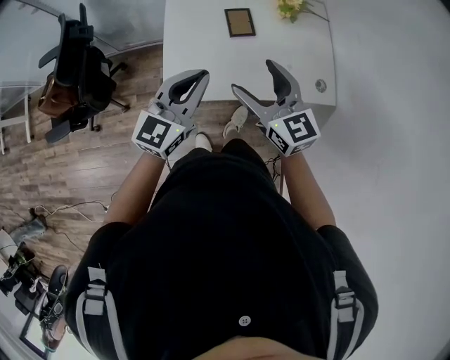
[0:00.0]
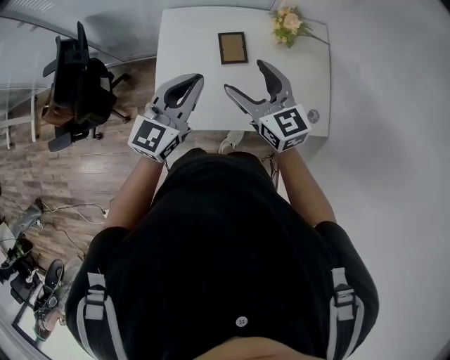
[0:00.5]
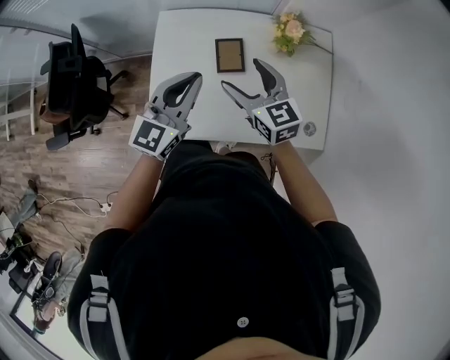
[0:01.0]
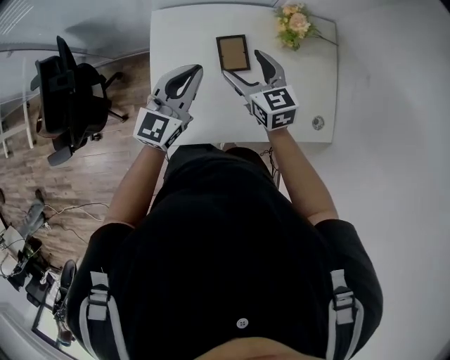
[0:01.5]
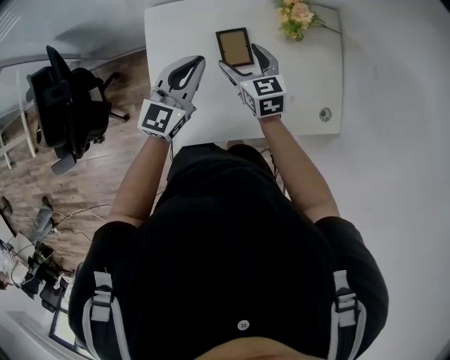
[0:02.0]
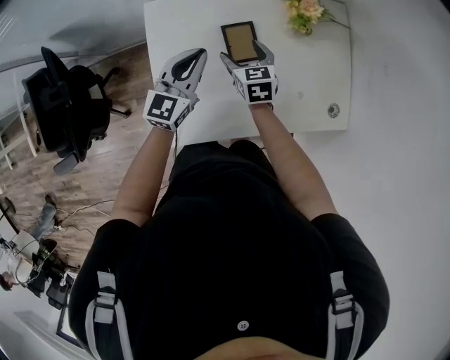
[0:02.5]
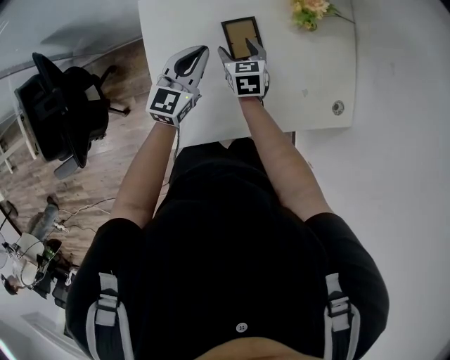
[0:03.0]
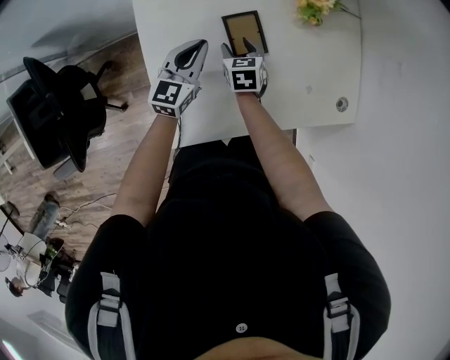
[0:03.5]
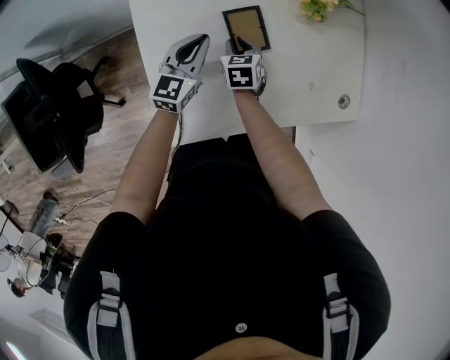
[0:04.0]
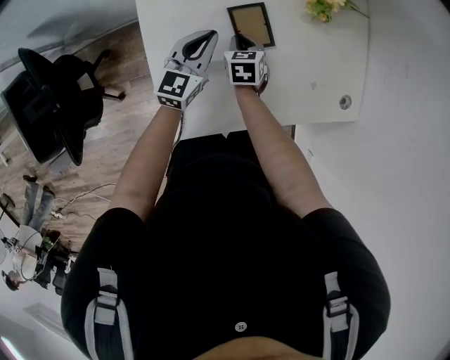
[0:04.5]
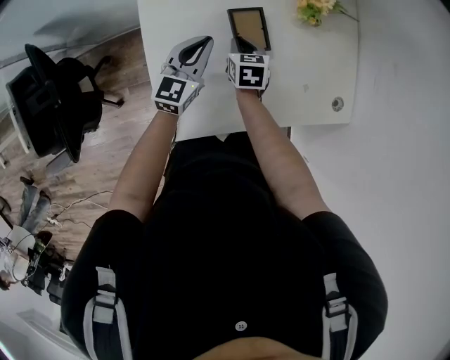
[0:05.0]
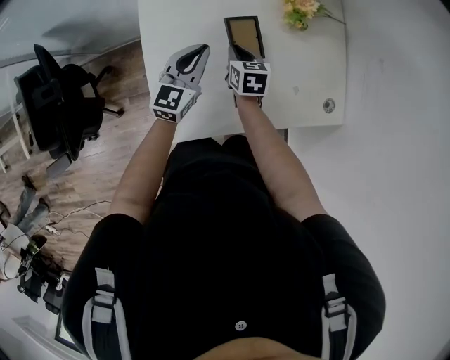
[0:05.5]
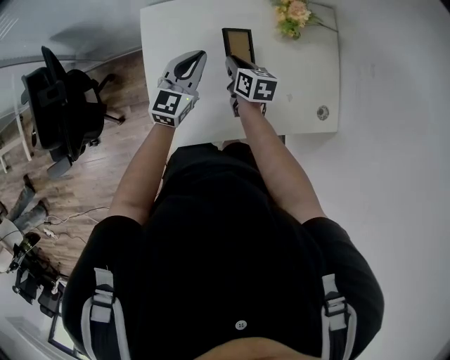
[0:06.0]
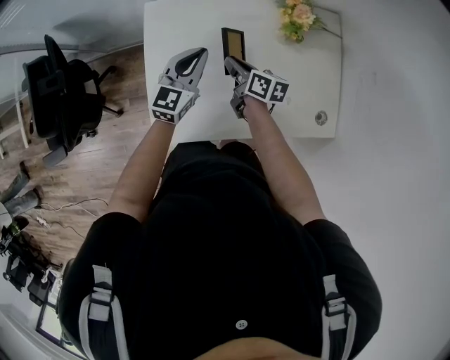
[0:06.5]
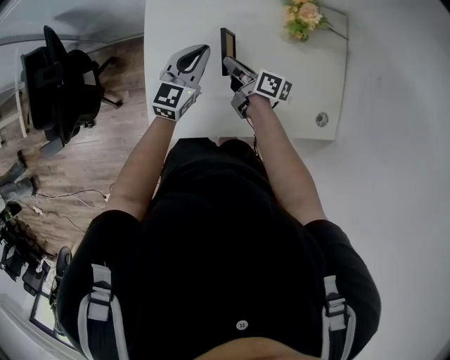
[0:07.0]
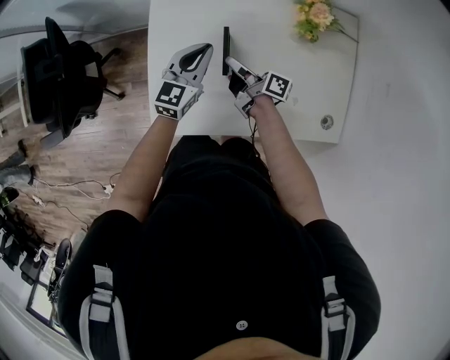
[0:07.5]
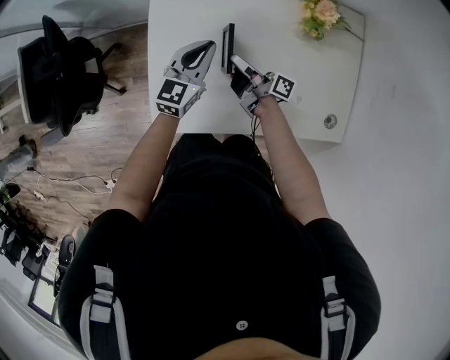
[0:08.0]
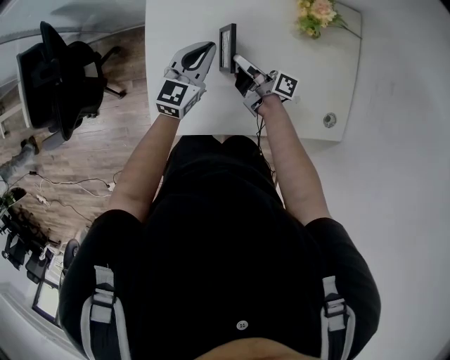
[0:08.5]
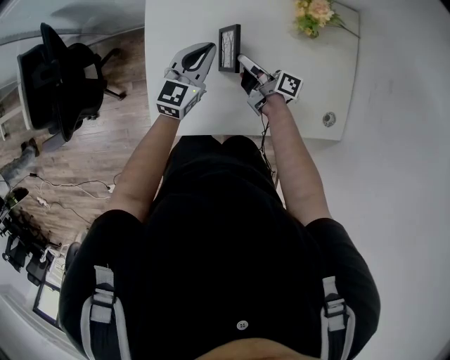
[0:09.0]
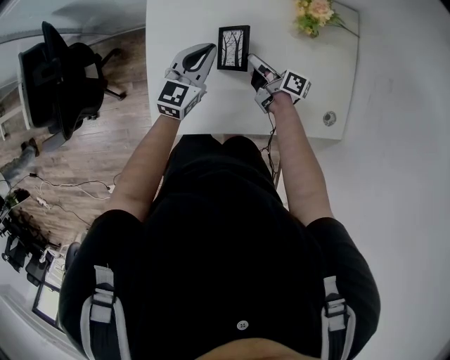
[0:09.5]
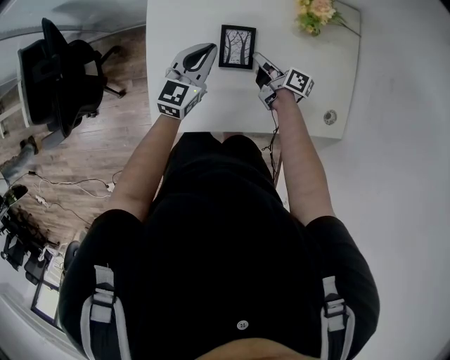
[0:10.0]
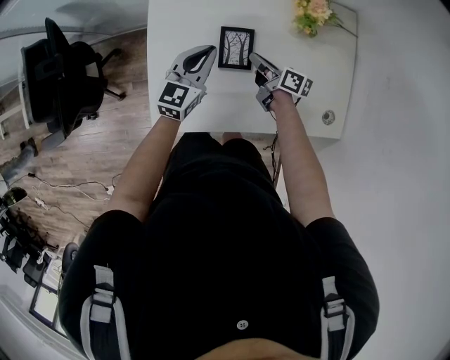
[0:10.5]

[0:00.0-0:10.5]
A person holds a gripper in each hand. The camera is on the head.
0:00.0 to 0:02.0: The left gripper travels forward by roughly 30 cm, while the right gripper heads forward and downward, covering about 35 cm, and changes its angle by approximately 20 degrees.
0:02.0 to 0:04.0: Both grippers travel together downward, about 20 cm. The right gripper turns by approximately 30 degrees, and closes up.
0:04.0 to 0:06.5: Both grippers move upward, about 10 cm. The right gripper changes its angle by some 50 degrees.
0:06.5 to 0:08.5: The right gripper changes its angle by roughly 40 degrees. The left gripper heads downward, covering approximately 5 cm.
0:08.5 to 0:10.5: The right gripper ends up about 5 cm from where it was, and changes its angle by about 30 degrees.

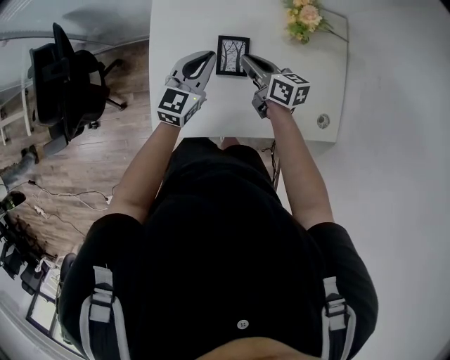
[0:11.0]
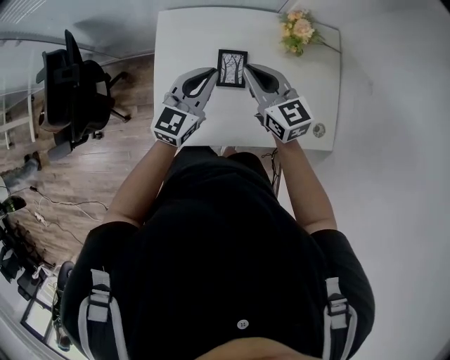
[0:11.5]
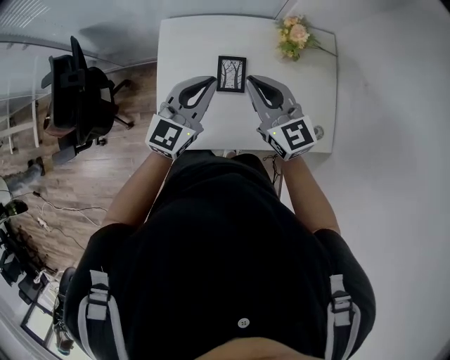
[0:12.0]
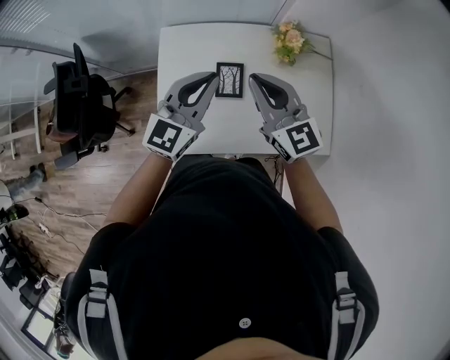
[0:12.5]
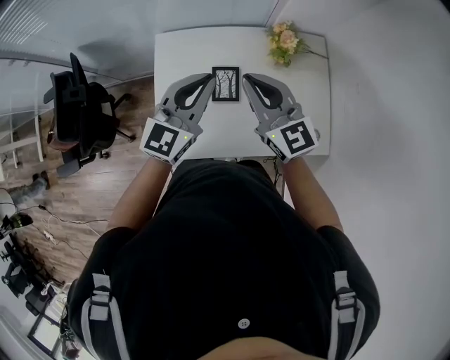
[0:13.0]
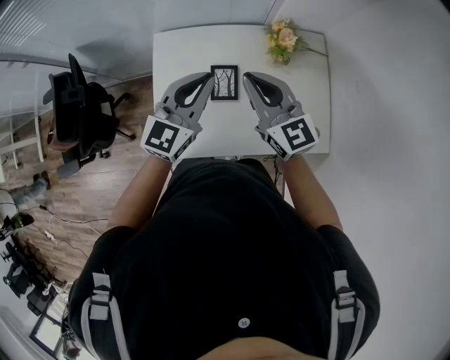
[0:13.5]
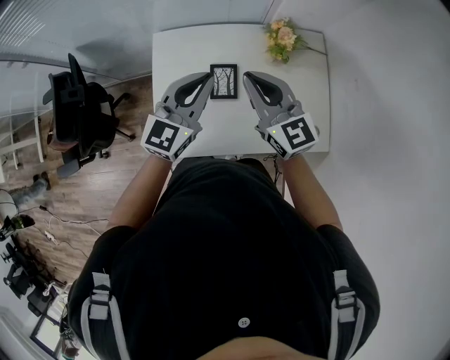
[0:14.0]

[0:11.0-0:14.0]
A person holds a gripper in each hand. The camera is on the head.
0:11.0 to 0:12.5: The grippers both shift upward by some 20 cm. The right gripper twists about 50 degrees counterclockwise, seen from behind.
0:12.5 to 0:14.0: The grippers stay close to where they were, moving slightly.

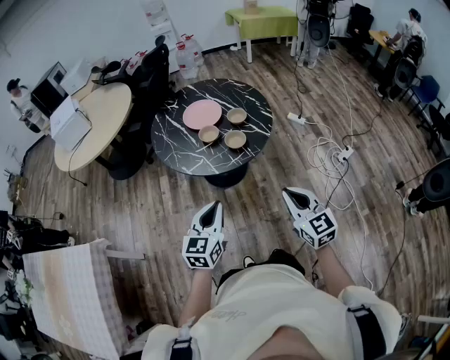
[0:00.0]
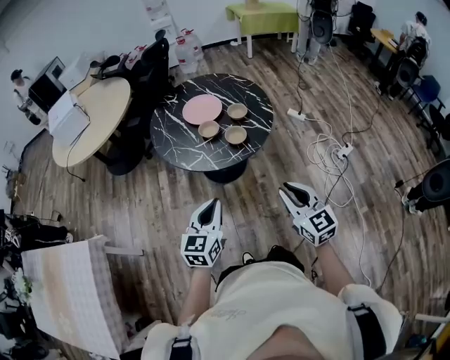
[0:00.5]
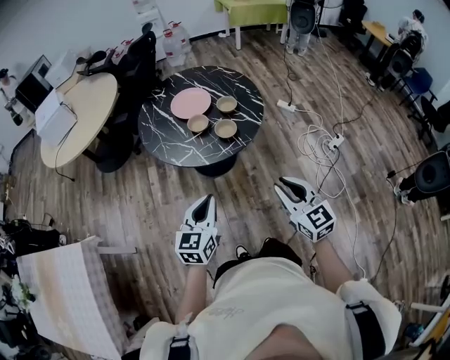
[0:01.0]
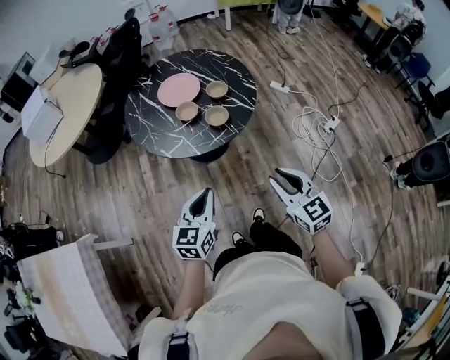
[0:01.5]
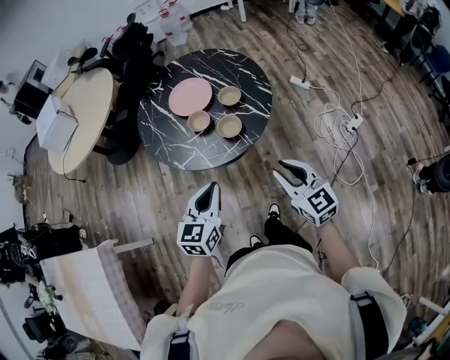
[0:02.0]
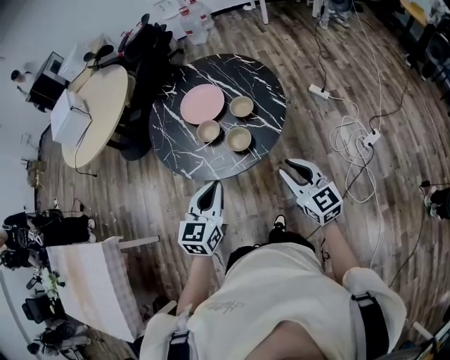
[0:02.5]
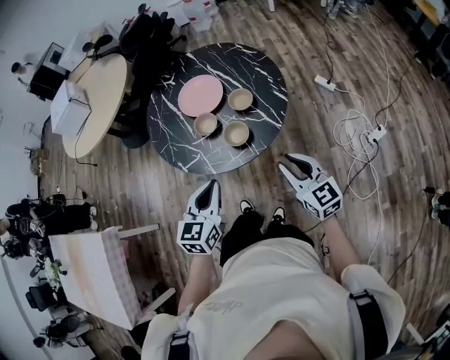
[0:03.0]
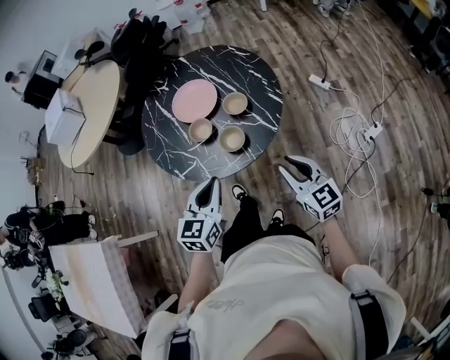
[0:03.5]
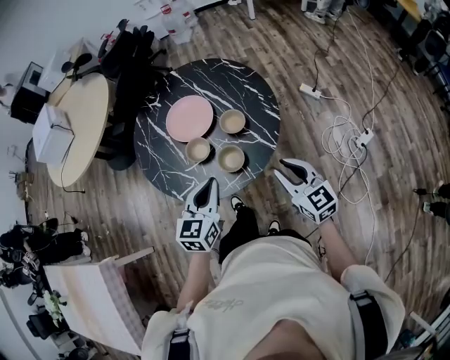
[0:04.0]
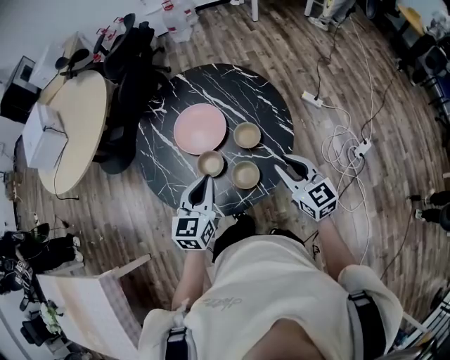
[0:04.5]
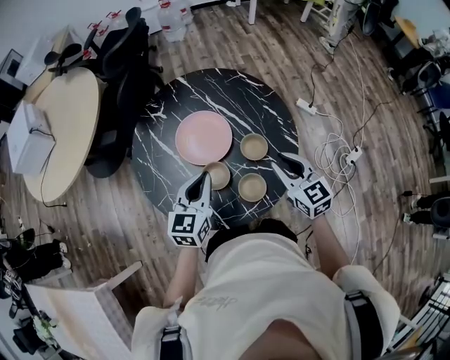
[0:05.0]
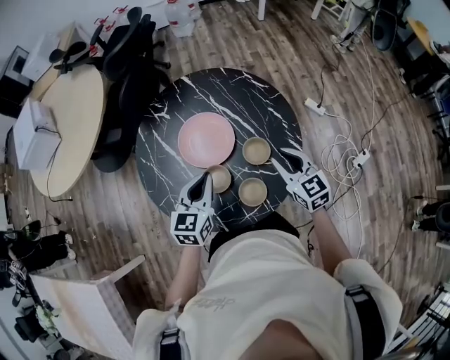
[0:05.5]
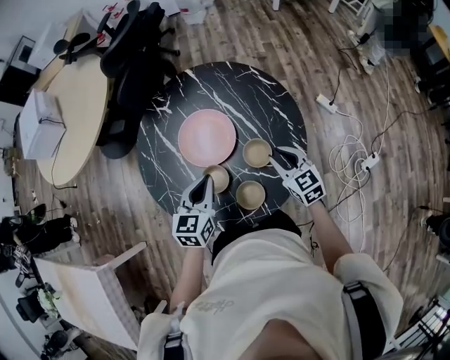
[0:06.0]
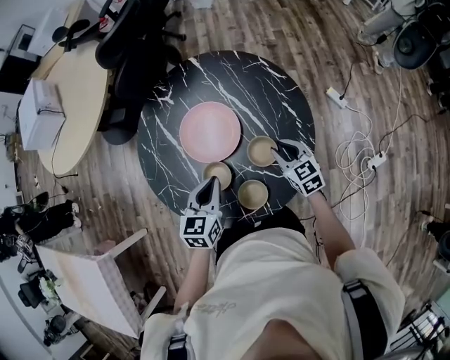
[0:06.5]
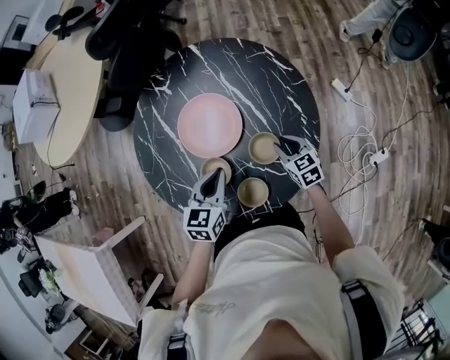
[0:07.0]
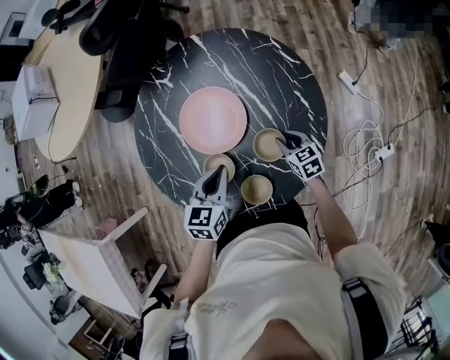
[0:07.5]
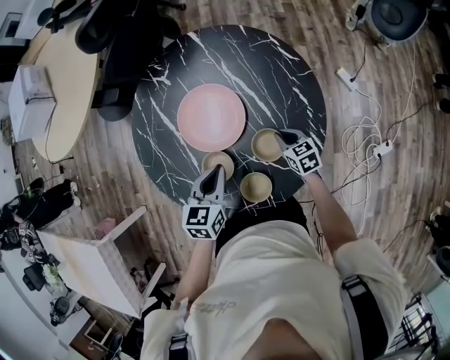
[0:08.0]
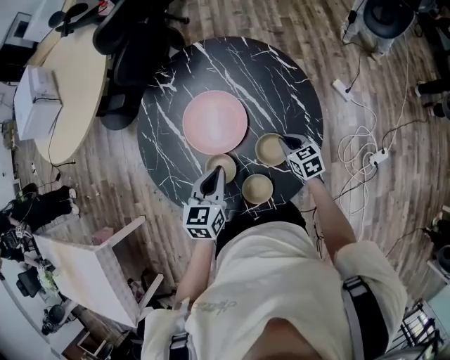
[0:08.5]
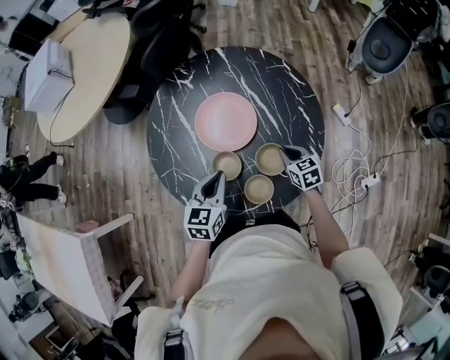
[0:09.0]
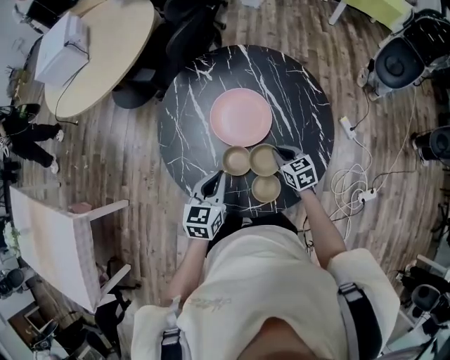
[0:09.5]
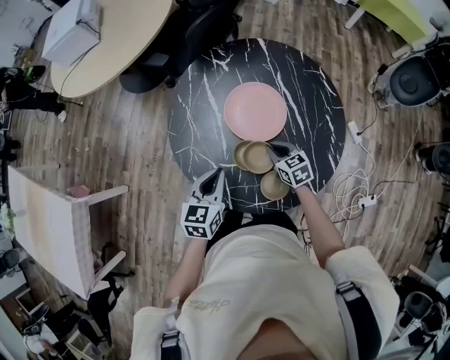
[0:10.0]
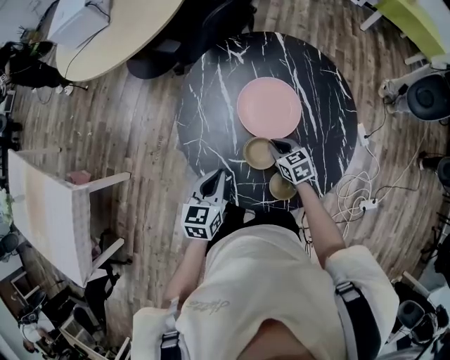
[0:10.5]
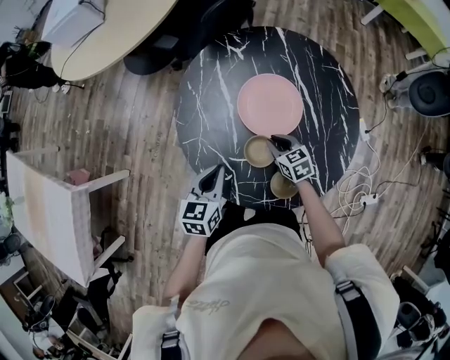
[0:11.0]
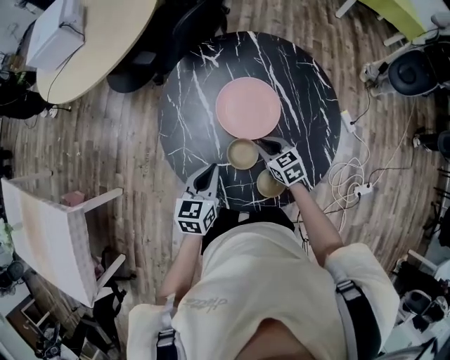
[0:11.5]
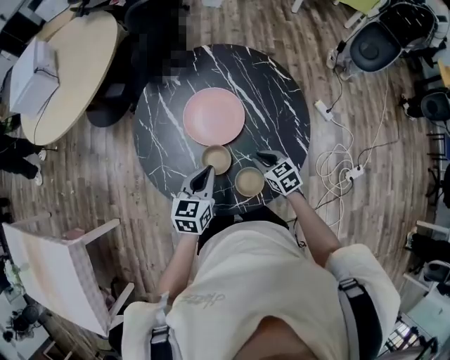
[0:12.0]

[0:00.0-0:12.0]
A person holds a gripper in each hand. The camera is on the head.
0:00.0 to 0:02.0: The two grippers go some 10 cm forward. The right gripper opens up.
0:02.0 to 0:04.0: The grippers both shift forward by some 15 cm.
0:04.0 to 0:06.0: The two grippers go some 25 cm forward.
0:06.0 to 0:08.0: The right gripper travels downward by approximately 20 cm, and rotates some 20 degrees, while the left gripper goes about 10 cm downward.
0:08.0 to 0:10.0: The left gripper heads to the left and backward, covering approximately 15 cm, while the right gripper travels to the left by some 15 cm.
0:10.0 to 0:12.0: The right gripper travels backward and to the right by roughly 10 cm, while the left gripper travels to the right by some 5 cm.

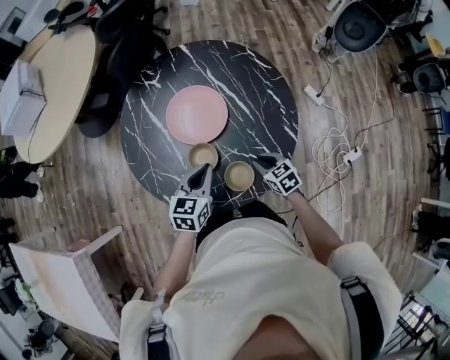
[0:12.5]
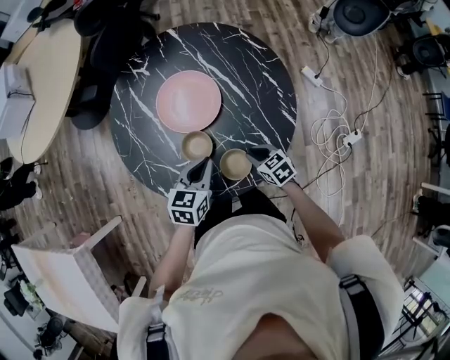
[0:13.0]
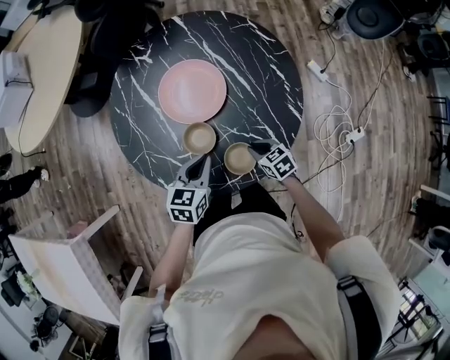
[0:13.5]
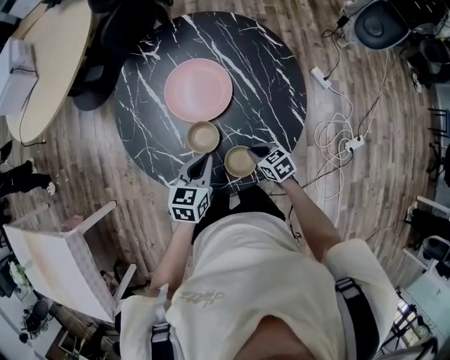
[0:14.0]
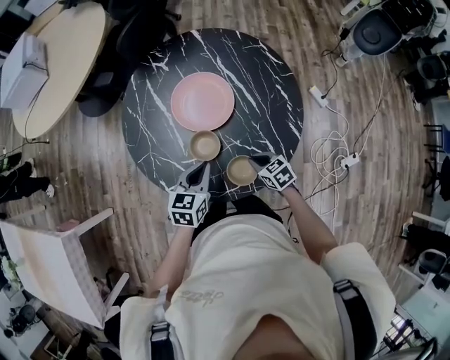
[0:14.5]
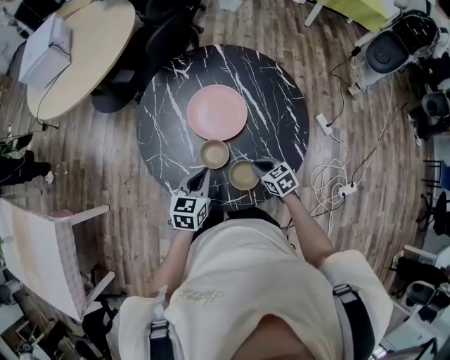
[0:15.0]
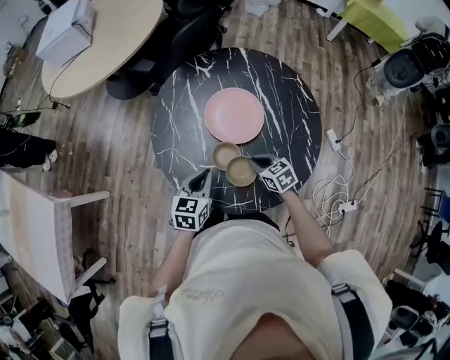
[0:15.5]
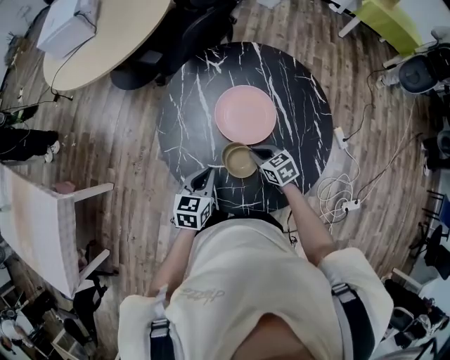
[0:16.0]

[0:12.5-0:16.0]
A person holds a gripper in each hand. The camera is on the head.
0:14.5 to 0:16.0: The left gripper moves to the left, some 10 cm. Meanwhile the right gripper shifts roughly 15 cm forward and to the left.
